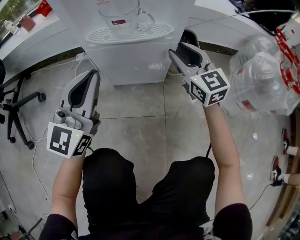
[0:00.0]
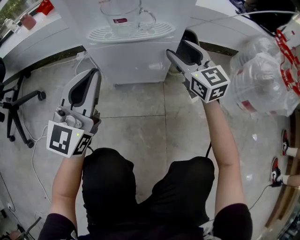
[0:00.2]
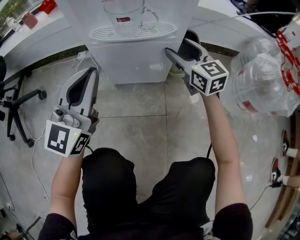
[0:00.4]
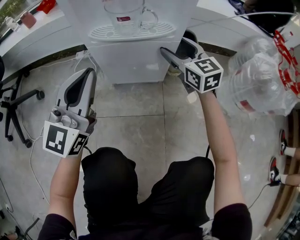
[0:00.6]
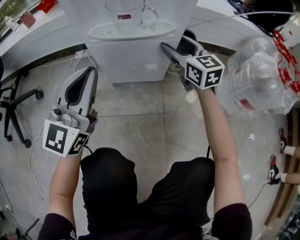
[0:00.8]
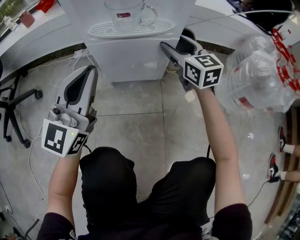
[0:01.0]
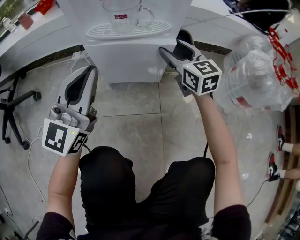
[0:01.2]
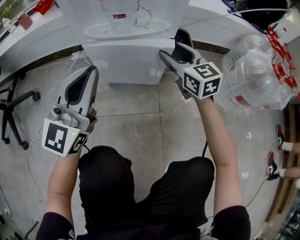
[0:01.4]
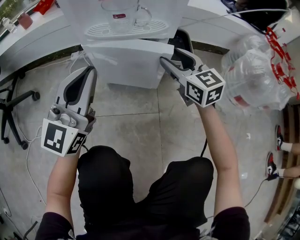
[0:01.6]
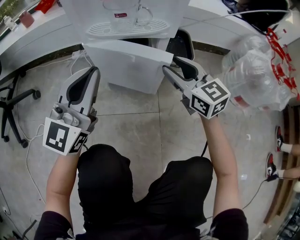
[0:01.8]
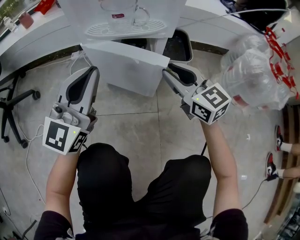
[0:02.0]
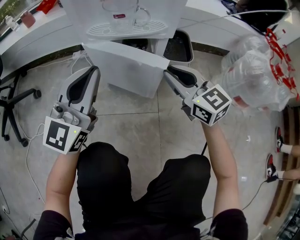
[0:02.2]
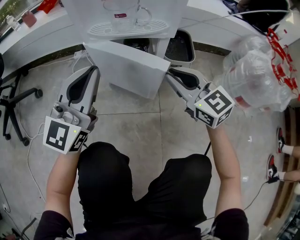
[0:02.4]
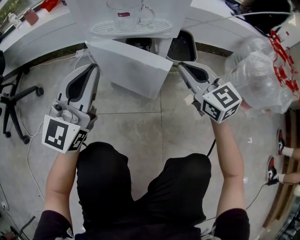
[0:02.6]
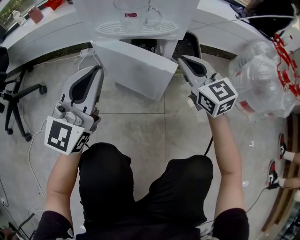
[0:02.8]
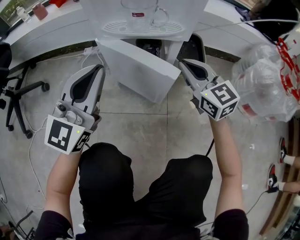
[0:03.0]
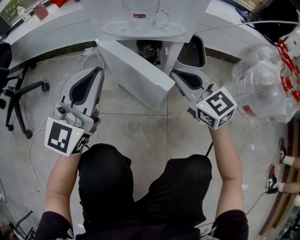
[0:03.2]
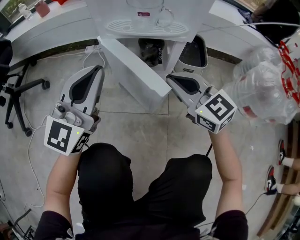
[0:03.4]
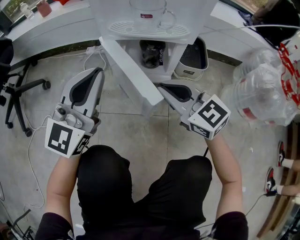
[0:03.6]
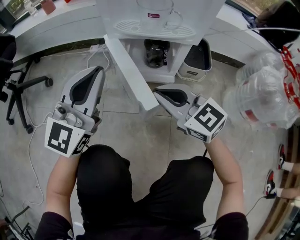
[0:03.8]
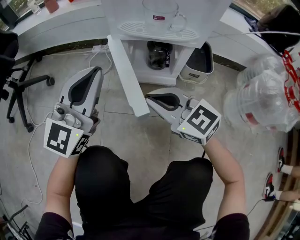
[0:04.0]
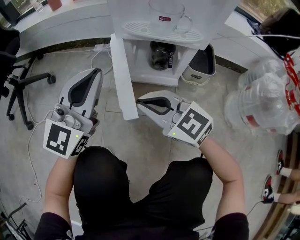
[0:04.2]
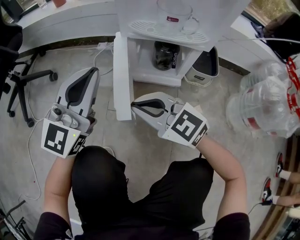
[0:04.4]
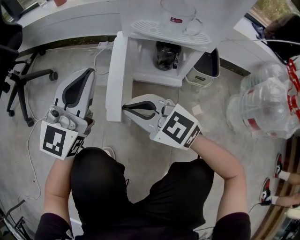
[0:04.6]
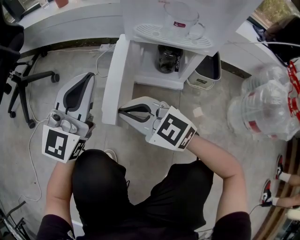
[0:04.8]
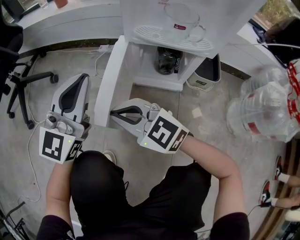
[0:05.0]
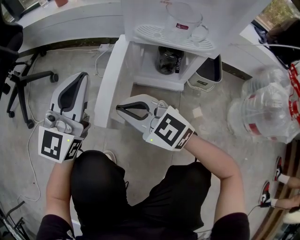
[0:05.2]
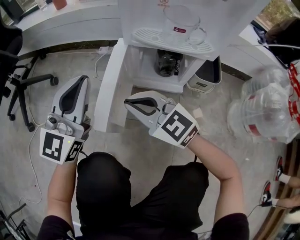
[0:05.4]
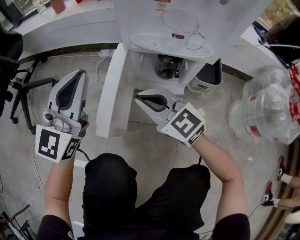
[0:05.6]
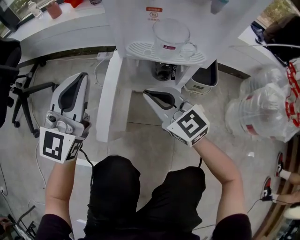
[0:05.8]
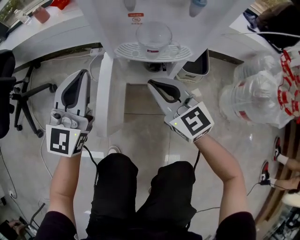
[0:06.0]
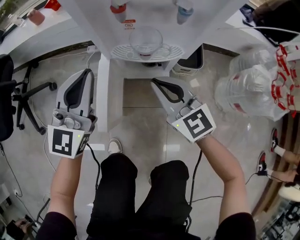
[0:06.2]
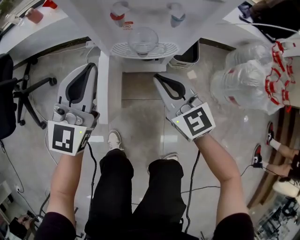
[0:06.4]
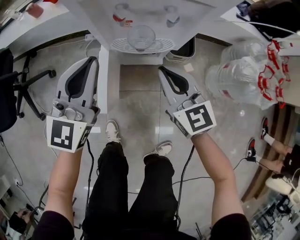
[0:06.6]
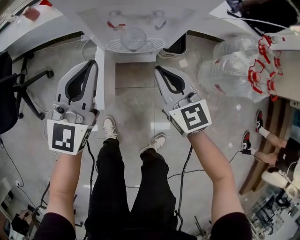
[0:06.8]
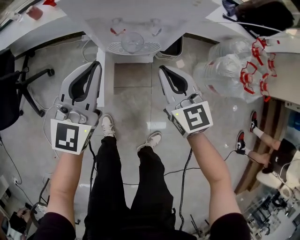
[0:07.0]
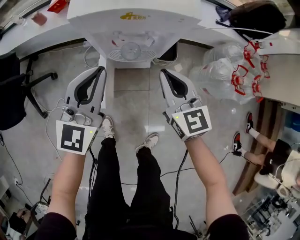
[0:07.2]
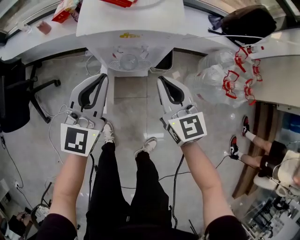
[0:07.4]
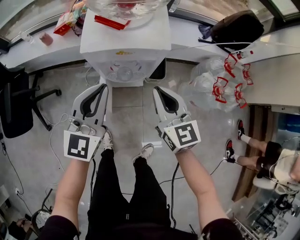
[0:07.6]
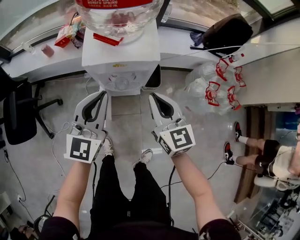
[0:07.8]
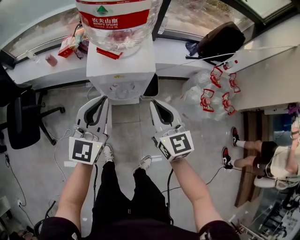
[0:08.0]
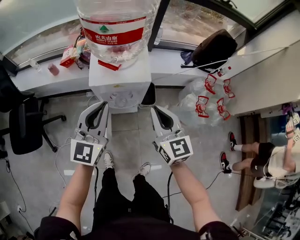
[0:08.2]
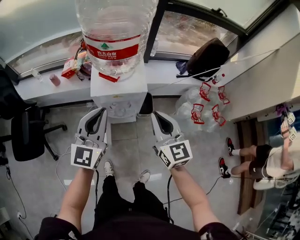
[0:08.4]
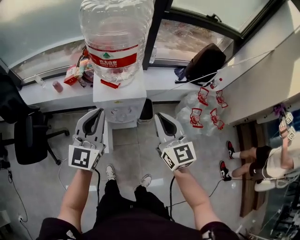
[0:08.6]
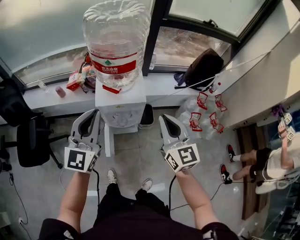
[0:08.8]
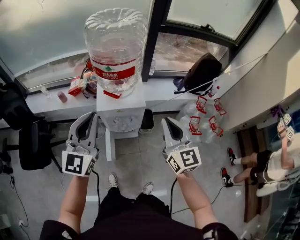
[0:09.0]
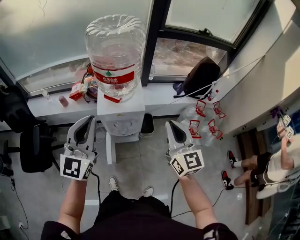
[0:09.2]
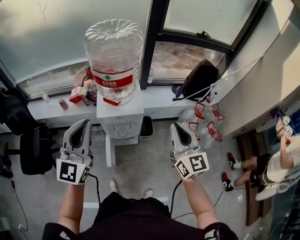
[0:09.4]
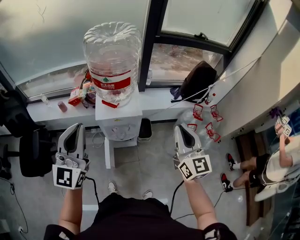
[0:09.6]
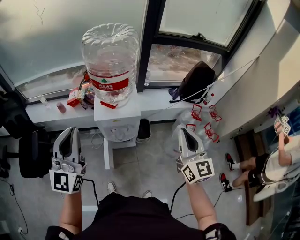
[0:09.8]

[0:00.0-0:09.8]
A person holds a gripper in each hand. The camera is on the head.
0:00.0 to 0:01.4: The right gripper opens its fingers.
0:01.4 to 0:02.8: The right gripper goes roughly 5 cm backward, and closes.
0:02.8 to 0:04.2: The left gripper shifts about 5 cm to the left. Meanwhile the right gripper goes some 25 cm to the left and backward, and swivels approximately 40 degrees.
0:04.2 to 0:05.6: The two grippers go about 5 cm forward. The right gripper moves some 10 cm to the left and comes back.
0:05.6 to 0:07.0: Both grippers travel together upward and to the right, about 30 cm. The right gripper turns by roughly 40 degrees.
0:07.0 to 0:08.4: The two grippers go approximately 30 cm upward.
0:08.4 to 0:09.8: The left gripper travels upward and backward by about 20 cm; the right gripper is displaced to the right, upward and backward by about 20 cm.

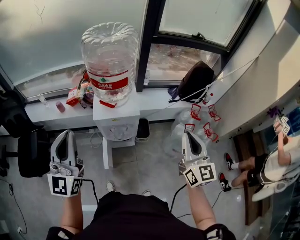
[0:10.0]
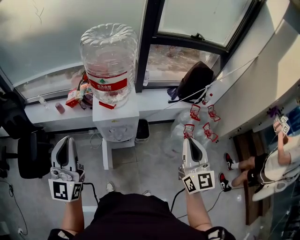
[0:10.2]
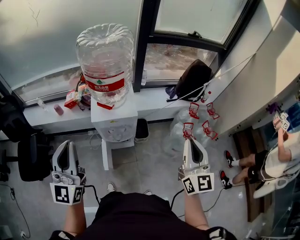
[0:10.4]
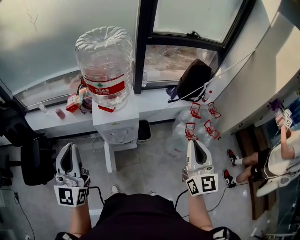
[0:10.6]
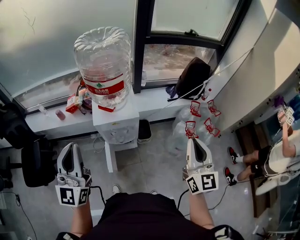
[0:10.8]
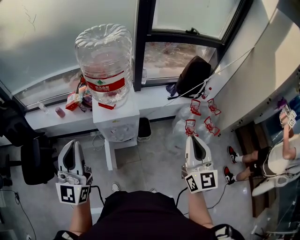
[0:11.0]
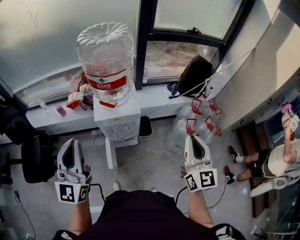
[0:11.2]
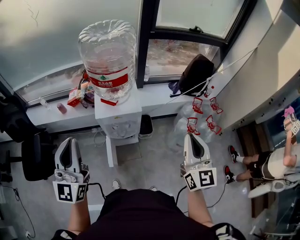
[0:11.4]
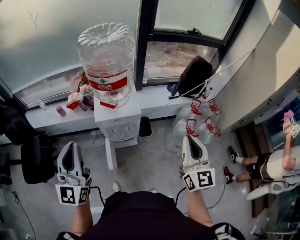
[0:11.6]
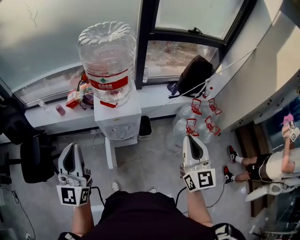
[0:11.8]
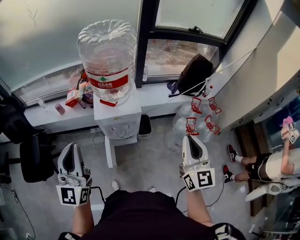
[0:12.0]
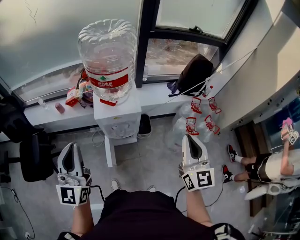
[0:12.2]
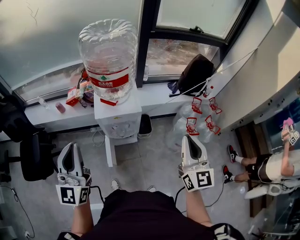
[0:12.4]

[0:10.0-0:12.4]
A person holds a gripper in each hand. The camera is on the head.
0:10.0 to 0:12.4: The grippers stay close to where they were, moving slightly.

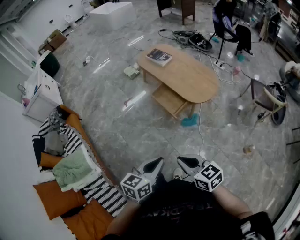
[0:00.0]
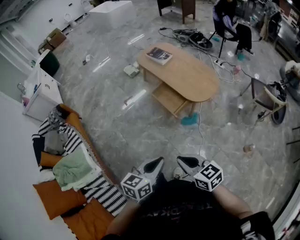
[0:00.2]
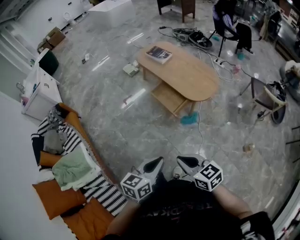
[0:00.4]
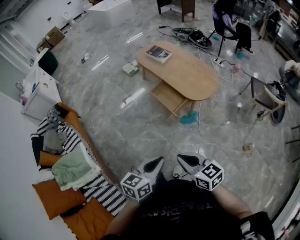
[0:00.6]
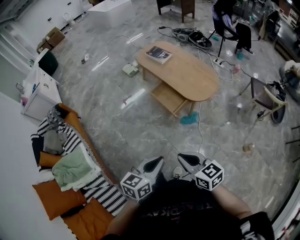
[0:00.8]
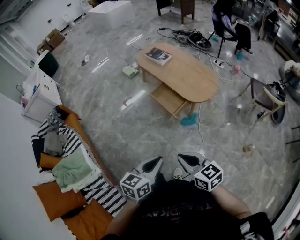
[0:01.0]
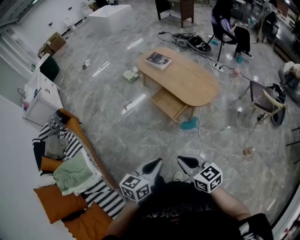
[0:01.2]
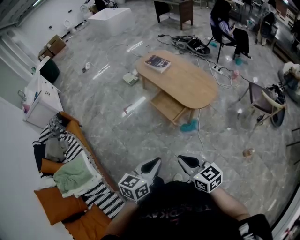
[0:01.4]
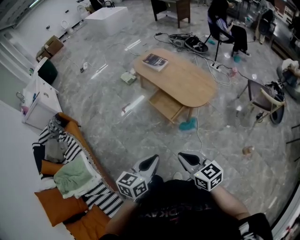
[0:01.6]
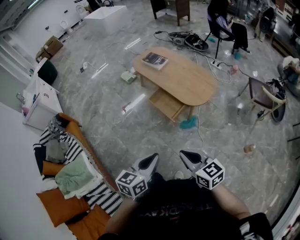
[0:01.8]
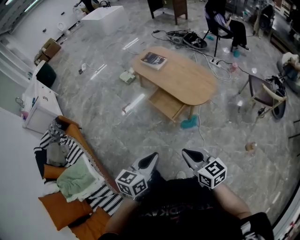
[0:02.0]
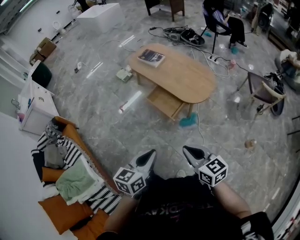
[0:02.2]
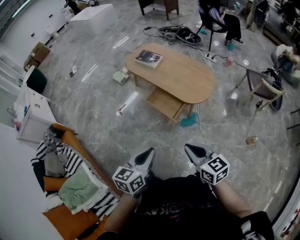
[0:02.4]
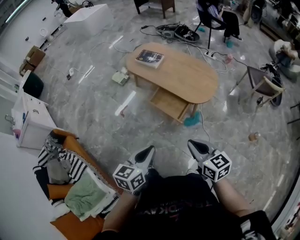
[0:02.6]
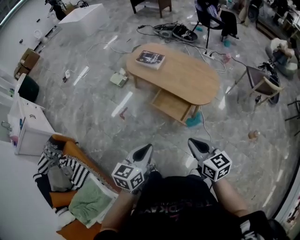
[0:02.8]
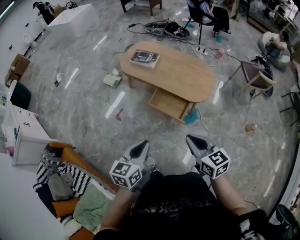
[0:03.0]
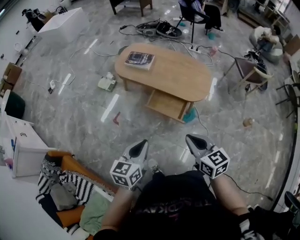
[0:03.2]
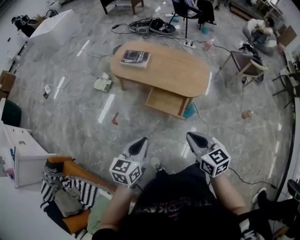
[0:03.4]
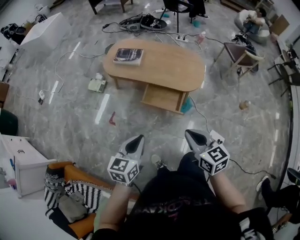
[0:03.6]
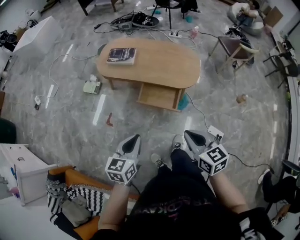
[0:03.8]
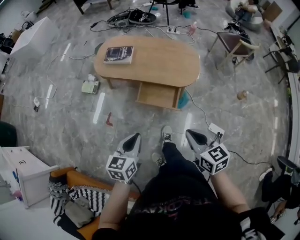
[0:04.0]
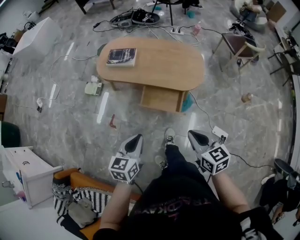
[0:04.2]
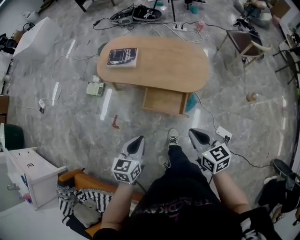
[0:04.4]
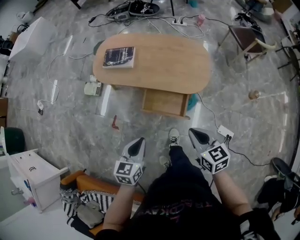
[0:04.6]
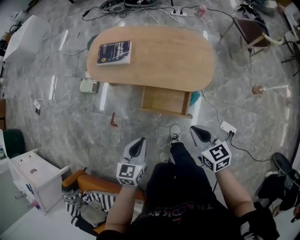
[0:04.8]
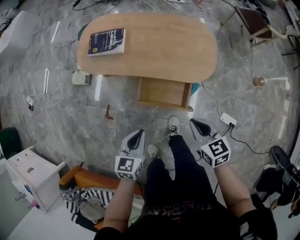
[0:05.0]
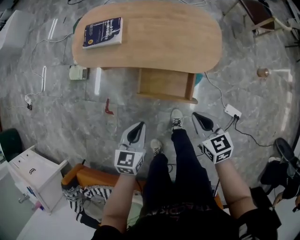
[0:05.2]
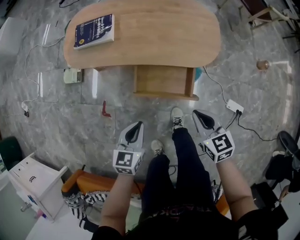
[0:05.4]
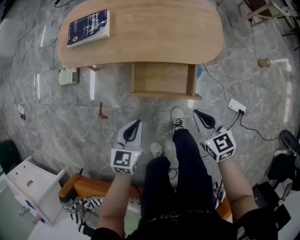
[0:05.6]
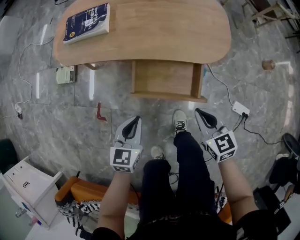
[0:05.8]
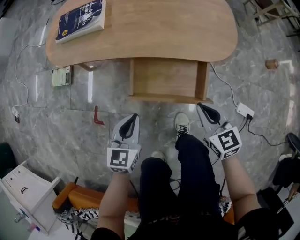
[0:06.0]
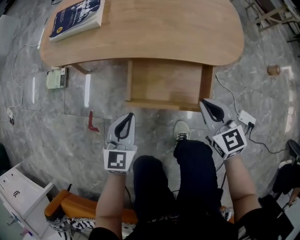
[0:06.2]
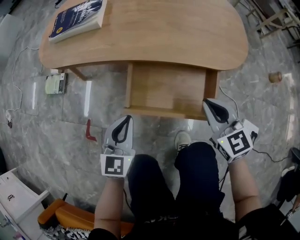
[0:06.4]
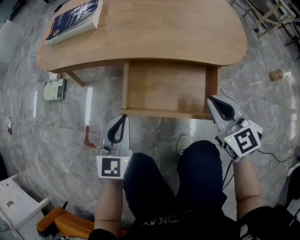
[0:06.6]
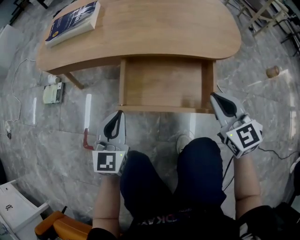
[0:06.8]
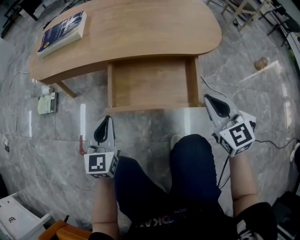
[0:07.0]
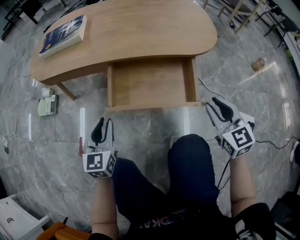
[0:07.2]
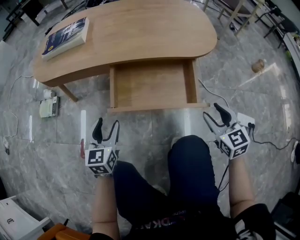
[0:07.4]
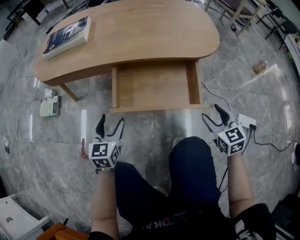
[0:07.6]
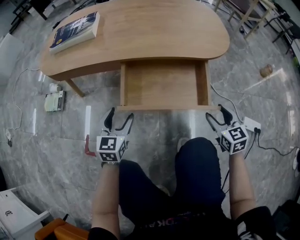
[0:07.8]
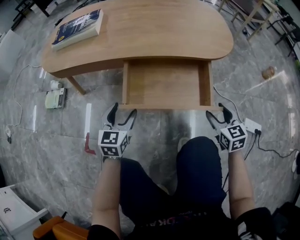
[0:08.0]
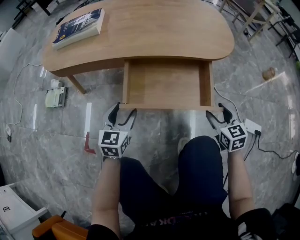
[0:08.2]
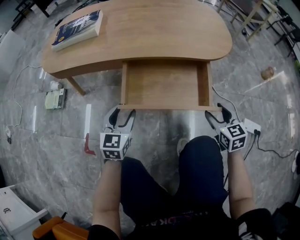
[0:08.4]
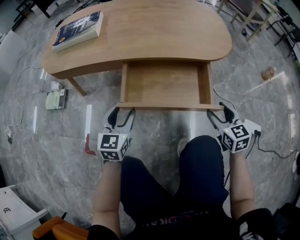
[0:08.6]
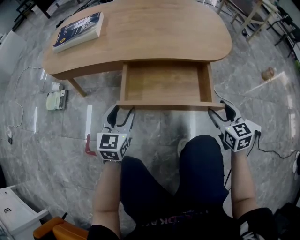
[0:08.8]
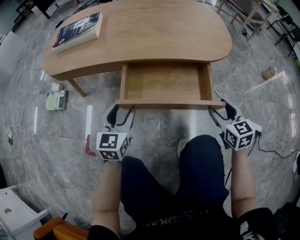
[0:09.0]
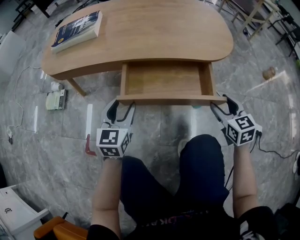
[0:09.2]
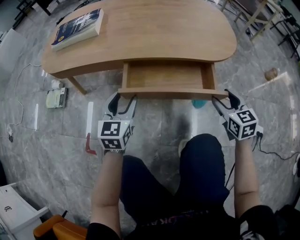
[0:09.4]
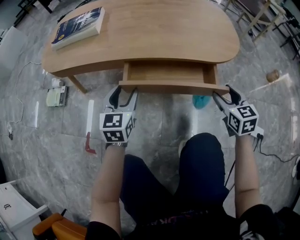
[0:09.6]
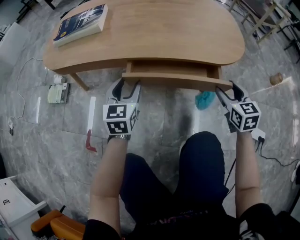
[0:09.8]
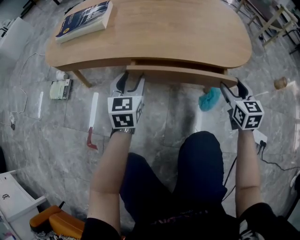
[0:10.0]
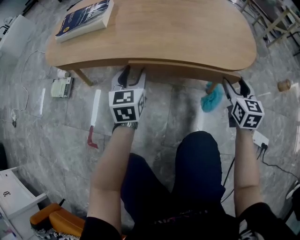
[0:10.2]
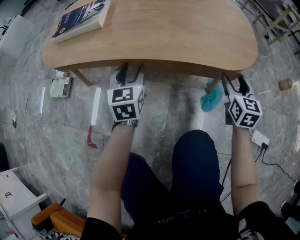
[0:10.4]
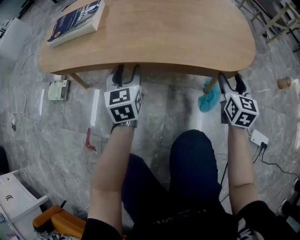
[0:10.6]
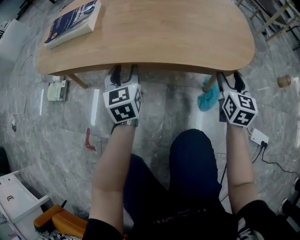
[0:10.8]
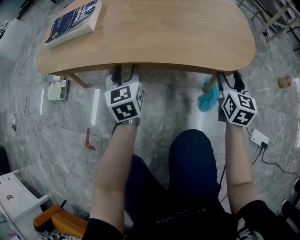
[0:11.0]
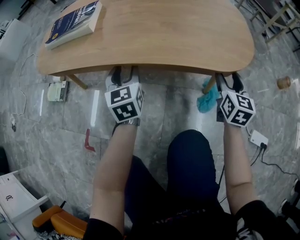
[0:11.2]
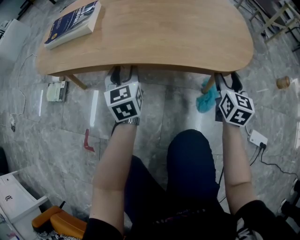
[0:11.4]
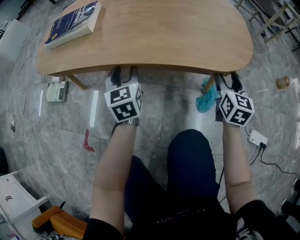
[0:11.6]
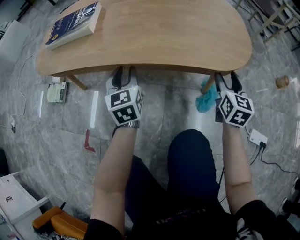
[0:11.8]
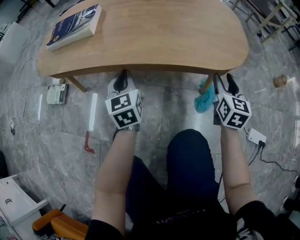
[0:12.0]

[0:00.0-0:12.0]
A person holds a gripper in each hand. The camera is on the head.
0:00.0 to 0:01.6: The right gripper ends up about 5 cm from where it was.
0:01.6 to 0:03.0: Both grippers travel together forward and to the left, roughly 30 cm. The right gripper swivels some 20 degrees.
0:03.0 to 0:04.4: The two grippers go some 15 cm forward and downward.
0:04.4 to 0:06.0: The grippers both shift downward by some 40 cm.
0:06.0 to 0:07.6: The right gripper shifts some 20 cm downward and to the right, and opens its fingers, while the left gripper travels downward by approximately 15 cm, and opens its fingers.
0:07.6 to 0:09.0: The left gripper shifts by approximately 5 cm.
0:09.0 to 0:10.4: The two grippers go some 15 cm forward.
0:10.4 to 0:12.0: The left gripper closes.
